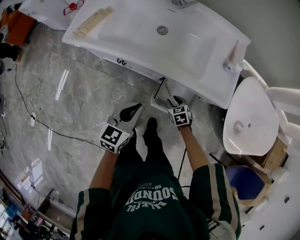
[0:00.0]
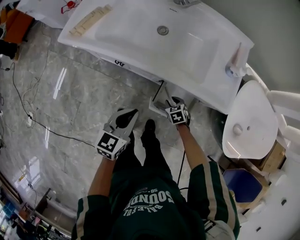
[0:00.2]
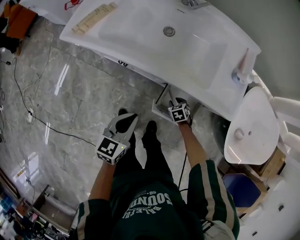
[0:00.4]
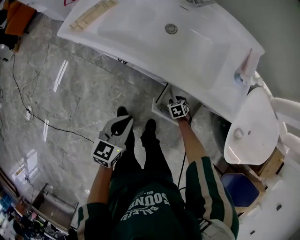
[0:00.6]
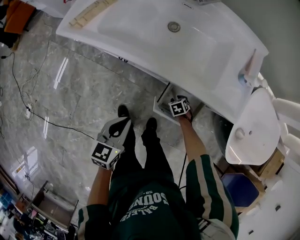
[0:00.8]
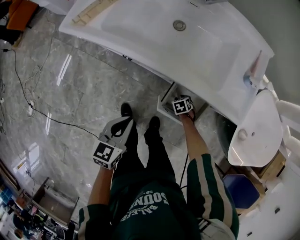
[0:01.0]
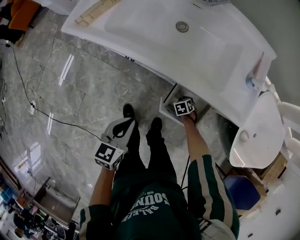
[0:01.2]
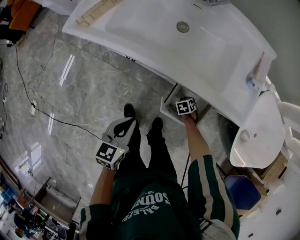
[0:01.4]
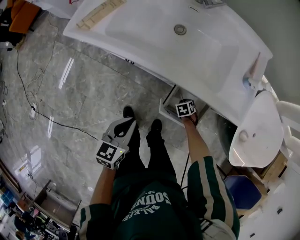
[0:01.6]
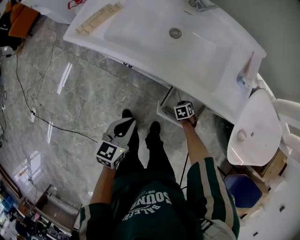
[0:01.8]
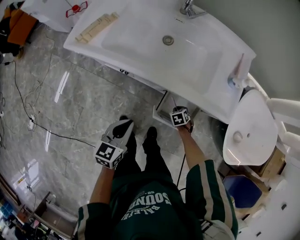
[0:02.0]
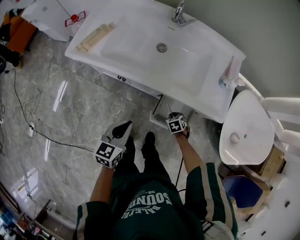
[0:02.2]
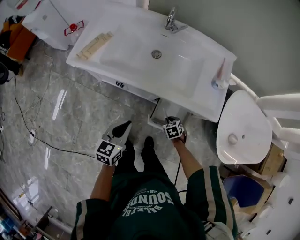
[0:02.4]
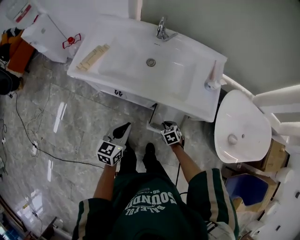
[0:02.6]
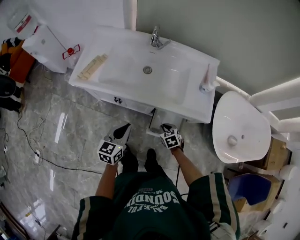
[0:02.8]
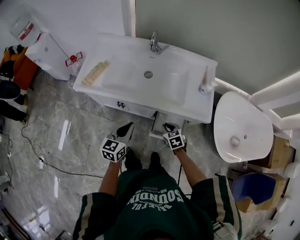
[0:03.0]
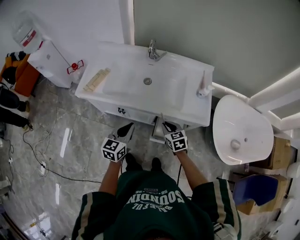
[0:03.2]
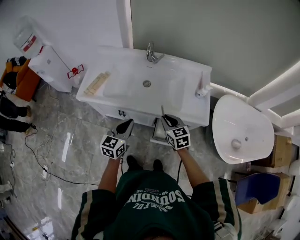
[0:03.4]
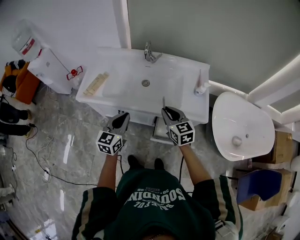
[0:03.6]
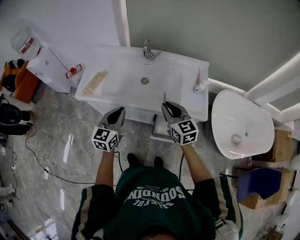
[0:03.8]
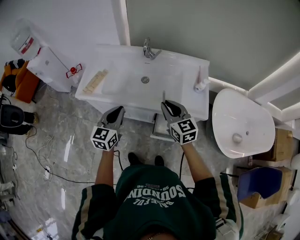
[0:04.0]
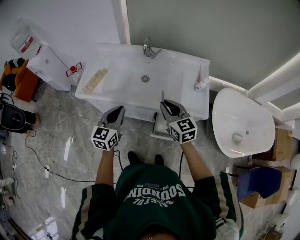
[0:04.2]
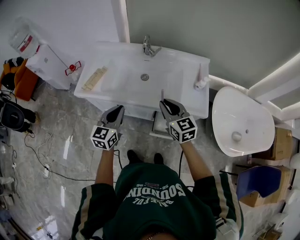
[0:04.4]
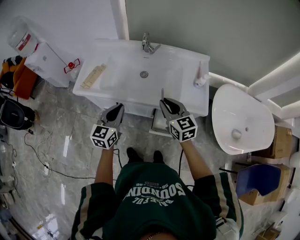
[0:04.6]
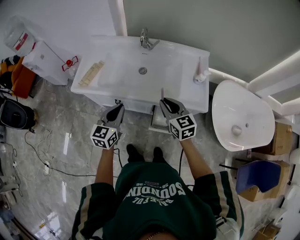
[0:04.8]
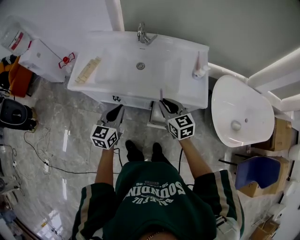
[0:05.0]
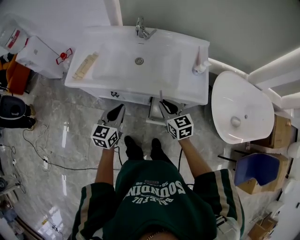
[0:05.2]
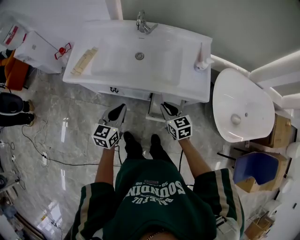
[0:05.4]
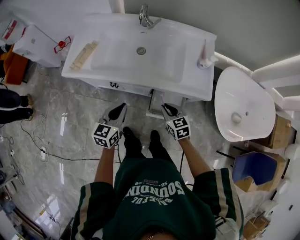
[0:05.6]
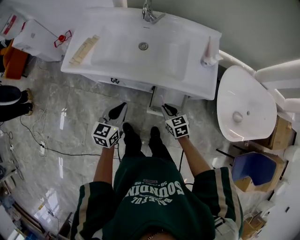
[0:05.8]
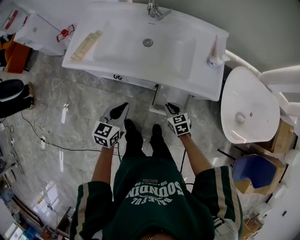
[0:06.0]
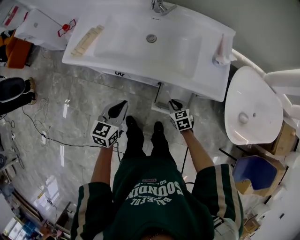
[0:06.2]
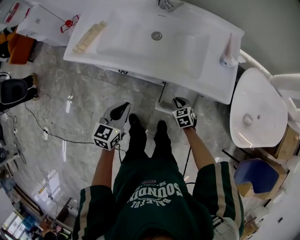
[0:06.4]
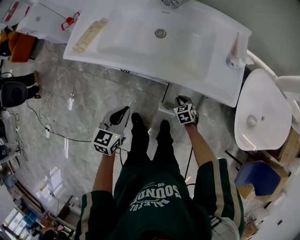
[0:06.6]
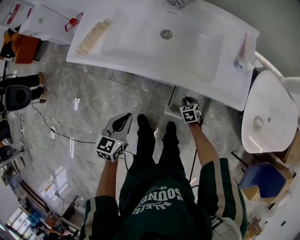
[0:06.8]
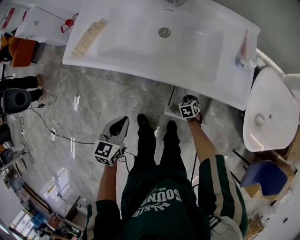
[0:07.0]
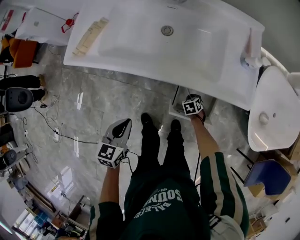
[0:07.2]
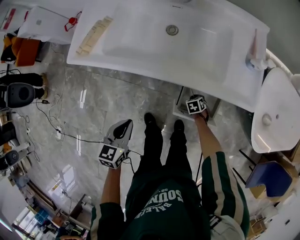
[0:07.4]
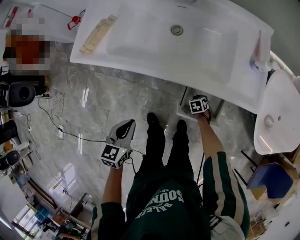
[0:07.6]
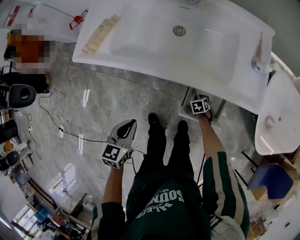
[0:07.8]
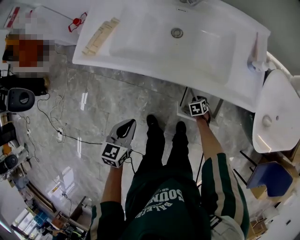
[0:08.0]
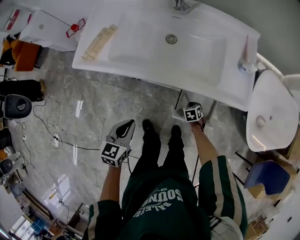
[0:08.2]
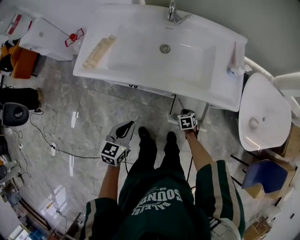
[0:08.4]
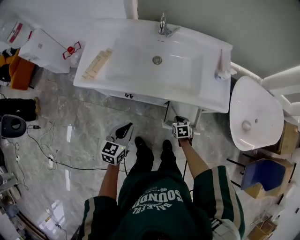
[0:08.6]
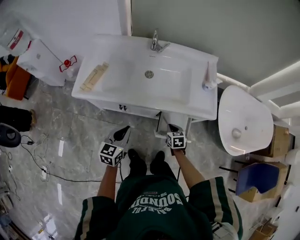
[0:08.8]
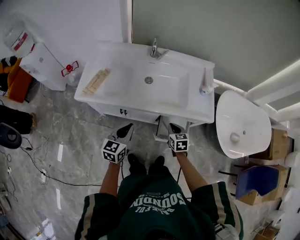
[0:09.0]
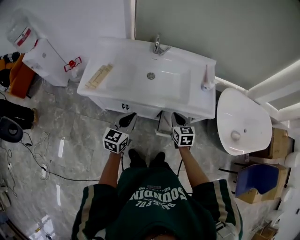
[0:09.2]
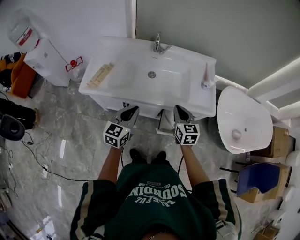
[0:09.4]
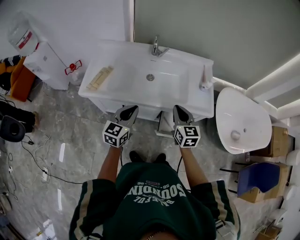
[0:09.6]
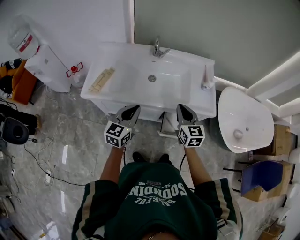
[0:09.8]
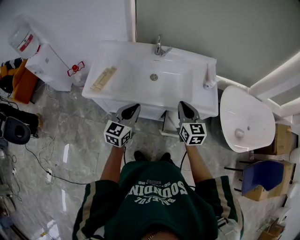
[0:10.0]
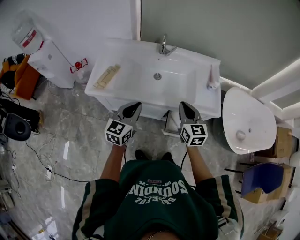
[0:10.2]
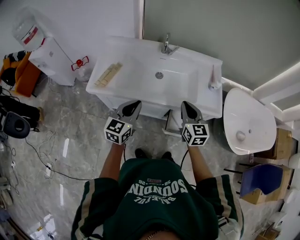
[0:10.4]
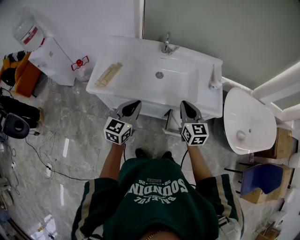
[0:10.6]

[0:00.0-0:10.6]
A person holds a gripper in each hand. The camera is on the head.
0:00.0 to 0:01.6: The left gripper travels downward by roughly 5 cm, while the right gripper heads downward, covering approximately 15 cm, and swivels roughly 20 degrees.
0:01.6 to 0:03.0: The left gripper travels upward by some 15 cm; the right gripper shifts roughly 30 cm upward, and tilts its fingers about 30 degrees upward.
0:03.0 to 0:04.6: The left gripper travels upward by approximately 10 cm; the right gripper goes roughly 25 cm upward, and points its fingers roughly 30 degrees further upward.
0:04.6 to 0:06.0: The right gripper is displaced downward by roughly 30 cm, and tips its fingers downward by some 30 degrees, while the left gripper goes roughly 15 cm downward.
0:06.0 to 0:07.6: The right gripper heads downward, covering about 30 cm, and tilts its fingers some 30 degrees downward; the left gripper ends up approximately 15 cm from where it was.
0:07.6 to 0:09.0: The right gripper is displaced upward by about 35 cm, and tilts its fingers roughly 40 degrees upward, while the left gripper shifts about 15 cm upward.
0:09.0 to 0:10.6: The left gripper shifts some 10 cm upward, while the right gripper travels upward by some 20 cm, and turns by some 30 degrees.

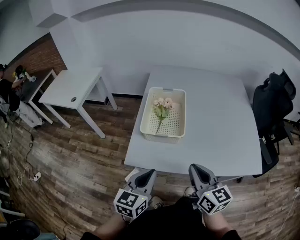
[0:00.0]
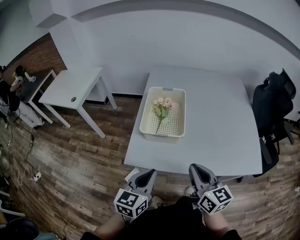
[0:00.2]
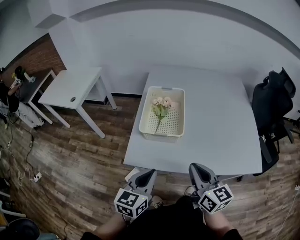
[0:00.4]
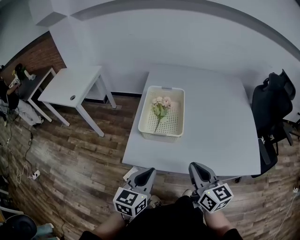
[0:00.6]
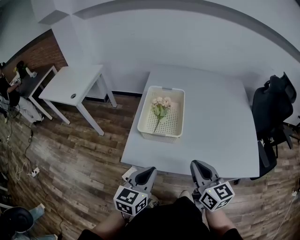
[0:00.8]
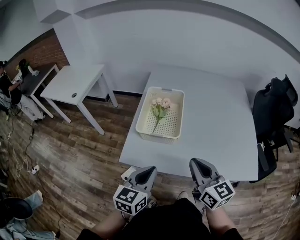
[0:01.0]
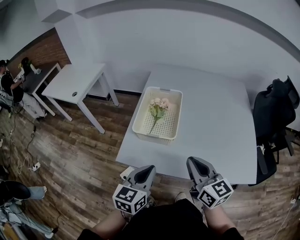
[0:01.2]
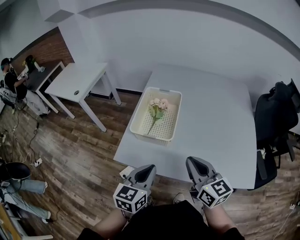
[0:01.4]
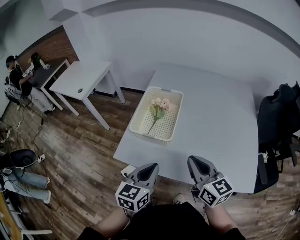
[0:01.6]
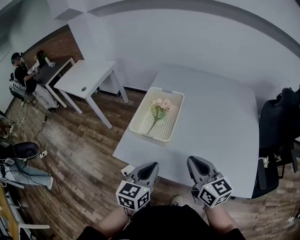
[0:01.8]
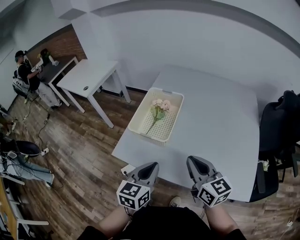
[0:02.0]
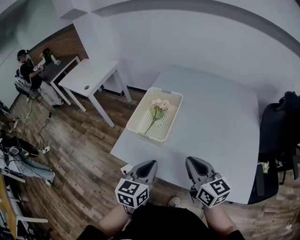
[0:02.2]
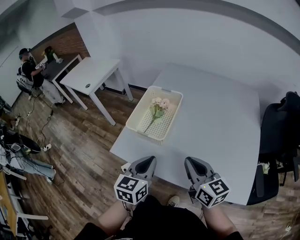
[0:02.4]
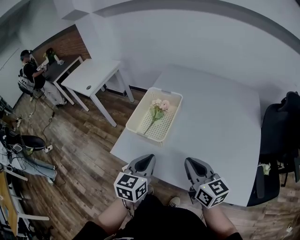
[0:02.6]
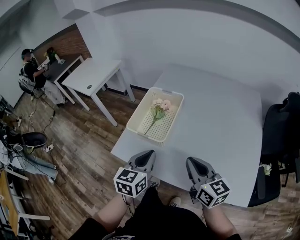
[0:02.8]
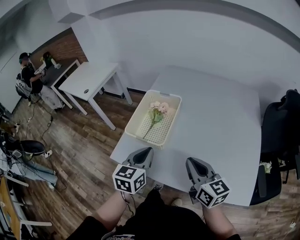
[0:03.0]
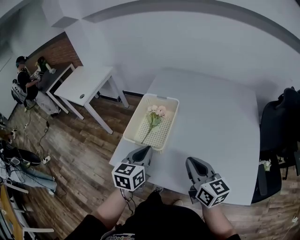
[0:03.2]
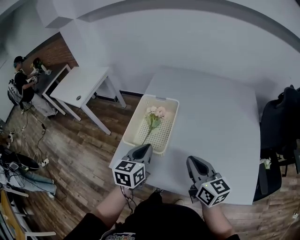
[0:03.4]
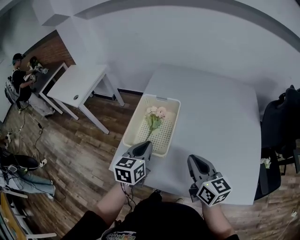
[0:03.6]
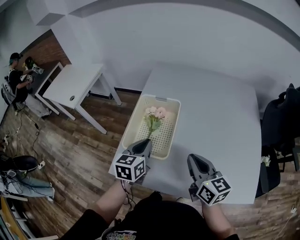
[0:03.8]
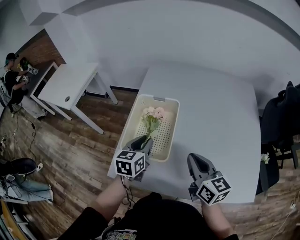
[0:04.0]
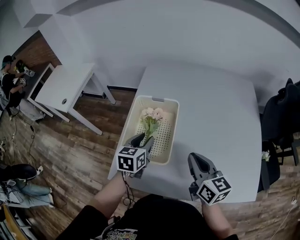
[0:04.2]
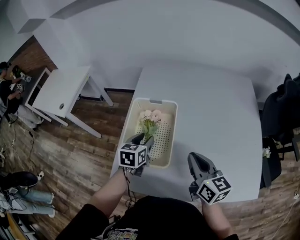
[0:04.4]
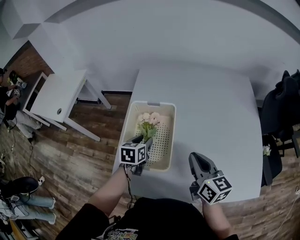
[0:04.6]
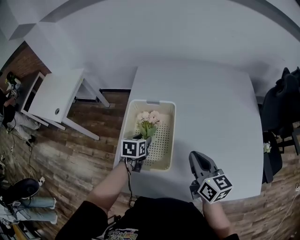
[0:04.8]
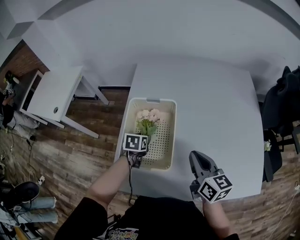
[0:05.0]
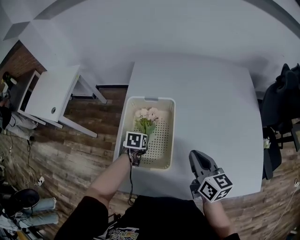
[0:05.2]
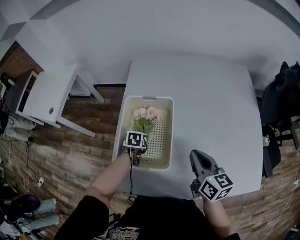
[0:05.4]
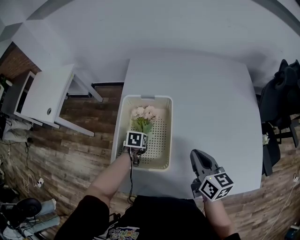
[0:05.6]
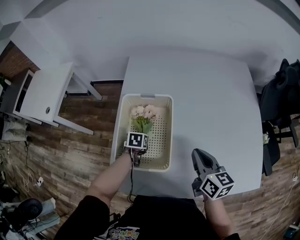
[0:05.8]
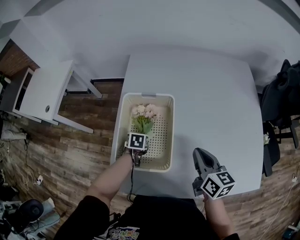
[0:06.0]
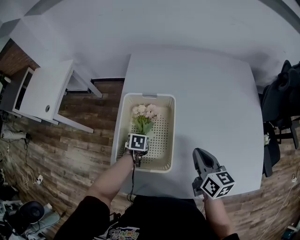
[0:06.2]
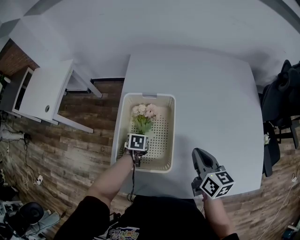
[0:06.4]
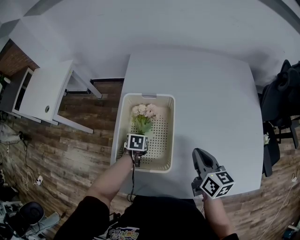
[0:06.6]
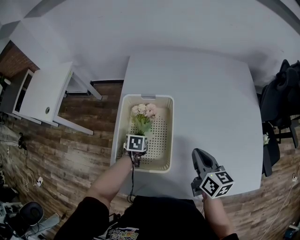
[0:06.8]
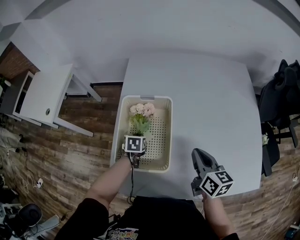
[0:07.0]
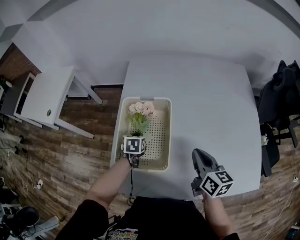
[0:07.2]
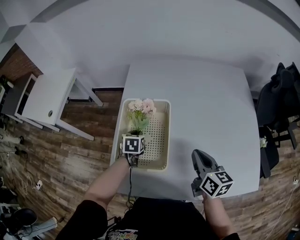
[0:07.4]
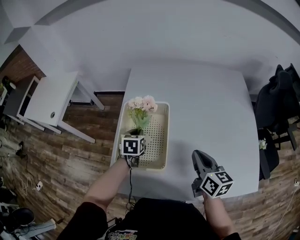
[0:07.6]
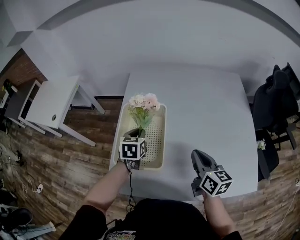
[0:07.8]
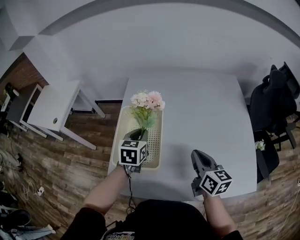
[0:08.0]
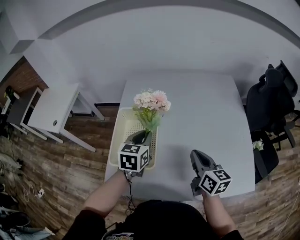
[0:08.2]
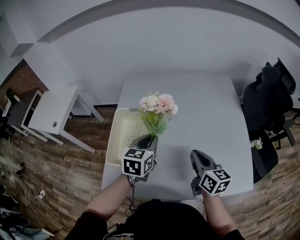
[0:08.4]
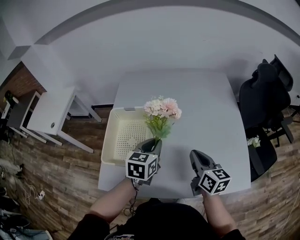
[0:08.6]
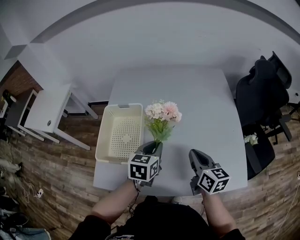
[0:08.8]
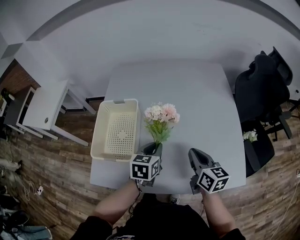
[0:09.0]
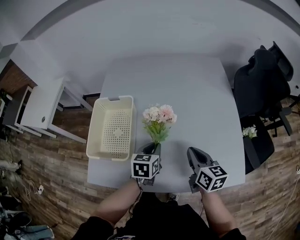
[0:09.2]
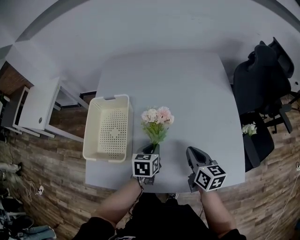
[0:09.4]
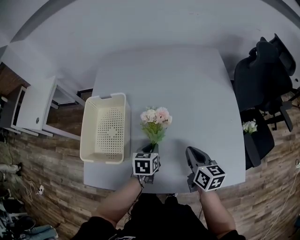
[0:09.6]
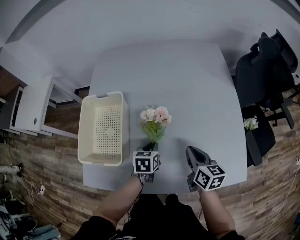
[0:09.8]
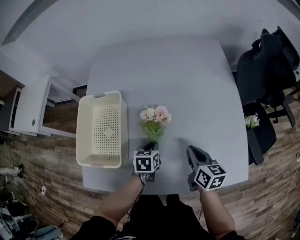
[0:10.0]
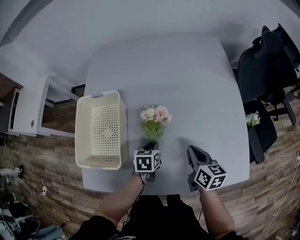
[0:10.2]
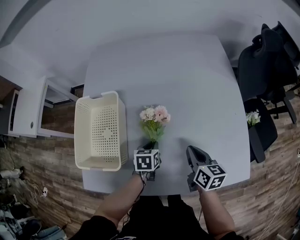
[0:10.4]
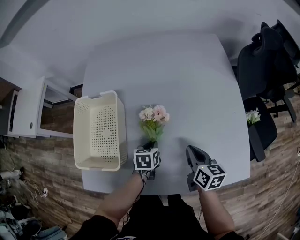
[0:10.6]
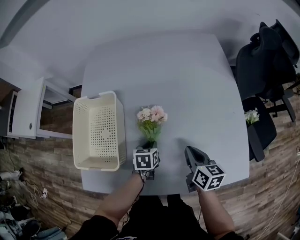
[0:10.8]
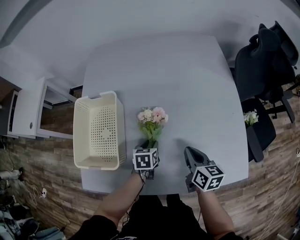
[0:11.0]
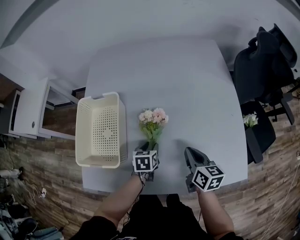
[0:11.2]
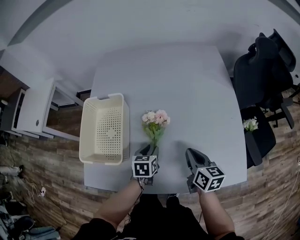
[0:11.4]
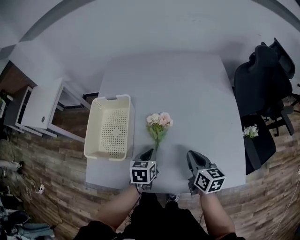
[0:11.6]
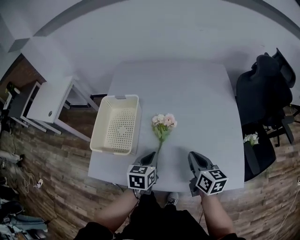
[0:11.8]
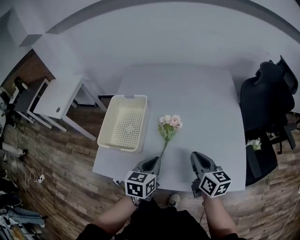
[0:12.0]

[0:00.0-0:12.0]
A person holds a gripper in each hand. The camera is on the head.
0:00.0 to 0:01.6: The right gripper travels to the right and forward by some 10 cm; the left gripper moves to the right, some 10 cm.
0:01.6 to 0:03.0: The right gripper is displaced to the right by approximately 5 cm; the left gripper travels forward by approximately 10 cm.
0:03.0 to 0:04.4: The left gripper is displaced forward and downward by roughly 25 cm, and opens. Meanwhile the right gripper is displaced forward by some 15 cm.
0:04.4 to 0:06.0: The right gripper goes about 5 cm downward. The left gripper goes about 20 cm downward, and tips its fingers downward by some 30 degrees.
0:06.0 to 0:07.6: The left gripper travels upward by approximately 15 cm, rotates approximately 20 degrees, and closes.
0:07.6 to 0:09.0: The left gripper heads to the right and backward, covering approximately 30 cm, while the right gripper moves to the right, roughly 15 cm.
0:09.0 to 0:10.4: The left gripper is displaced downward by approximately 20 cm; the right gripper goes roughly 10 cm downward.
0:10.4 to 0:12.0: The right gripper heads upward and backward, covering some 15 cm, while the left gripper moves upward and backward, some 25 cm, rotates approximately 20 degrees, and opens, then closes once more.

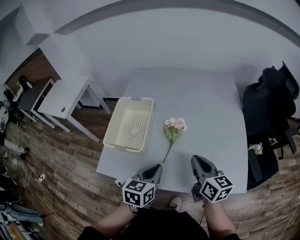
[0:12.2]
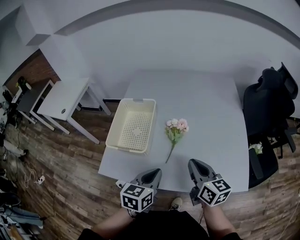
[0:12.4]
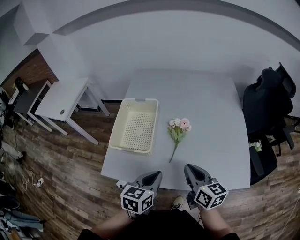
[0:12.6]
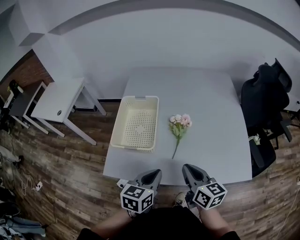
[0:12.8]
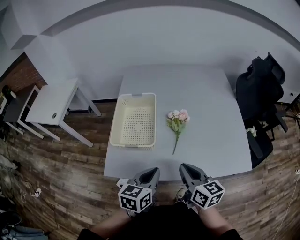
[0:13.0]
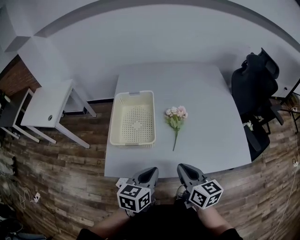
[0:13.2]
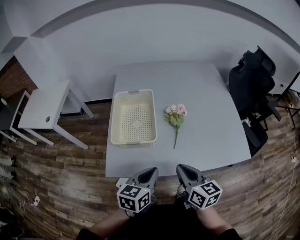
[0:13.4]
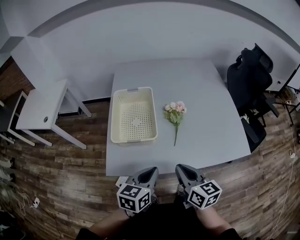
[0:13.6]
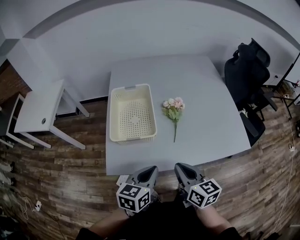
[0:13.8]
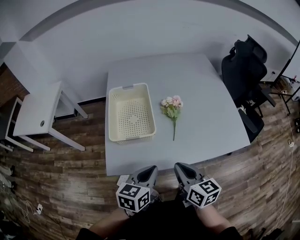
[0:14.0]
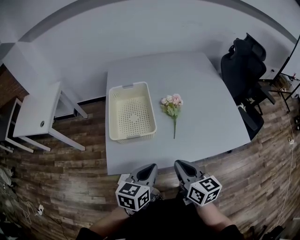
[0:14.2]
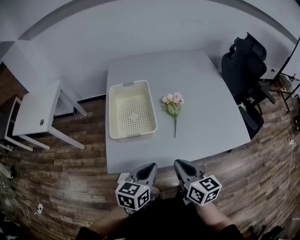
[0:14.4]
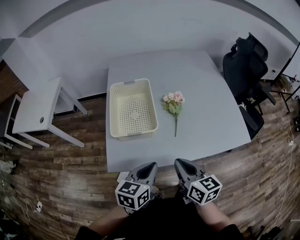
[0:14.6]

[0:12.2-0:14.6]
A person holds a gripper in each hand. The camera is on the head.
0:12.2 to 0:13.4: The two grippers go about 20 cm to the left and backward.
0:13.4 to 0:14.6: The grippers make only small movements.
